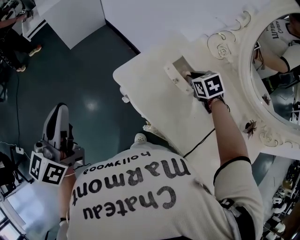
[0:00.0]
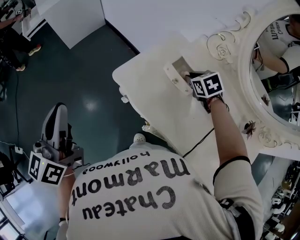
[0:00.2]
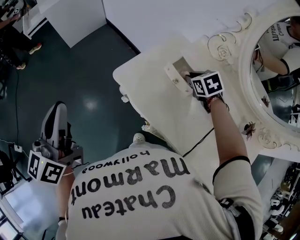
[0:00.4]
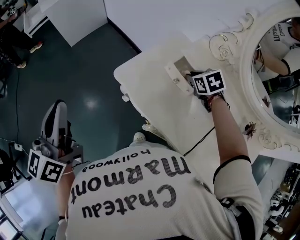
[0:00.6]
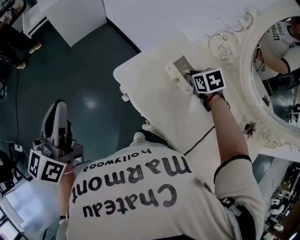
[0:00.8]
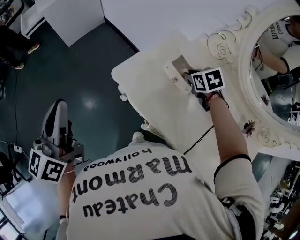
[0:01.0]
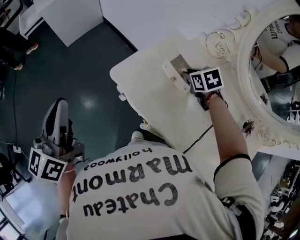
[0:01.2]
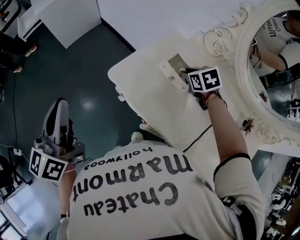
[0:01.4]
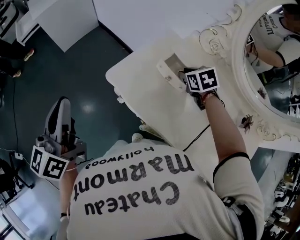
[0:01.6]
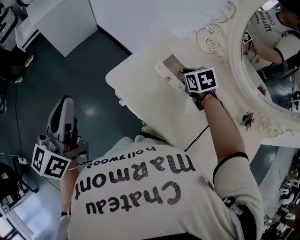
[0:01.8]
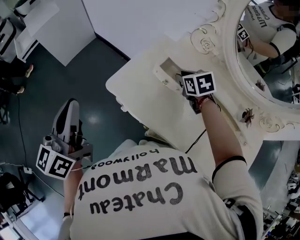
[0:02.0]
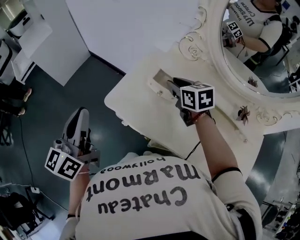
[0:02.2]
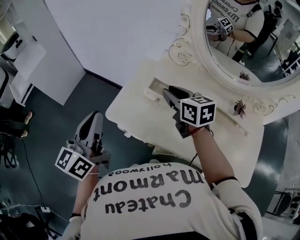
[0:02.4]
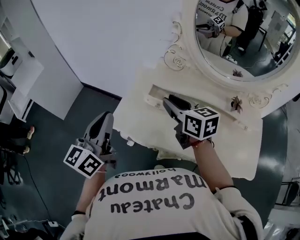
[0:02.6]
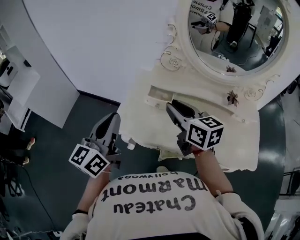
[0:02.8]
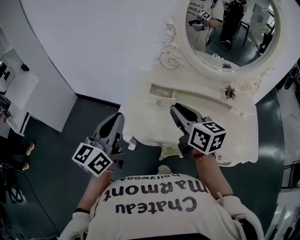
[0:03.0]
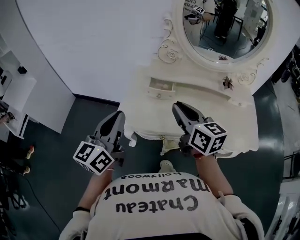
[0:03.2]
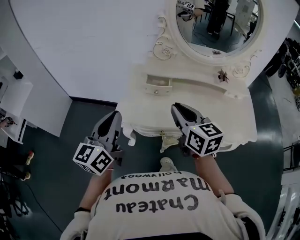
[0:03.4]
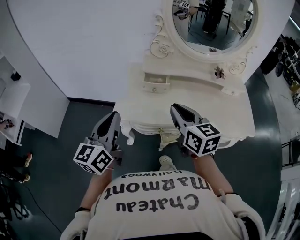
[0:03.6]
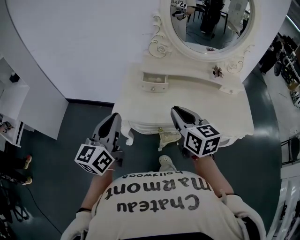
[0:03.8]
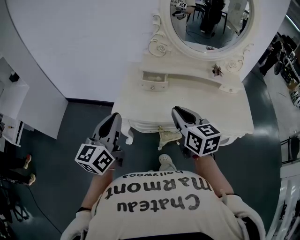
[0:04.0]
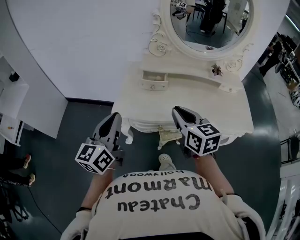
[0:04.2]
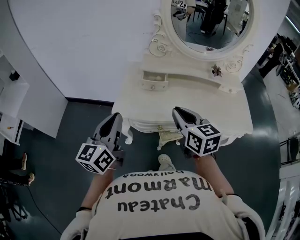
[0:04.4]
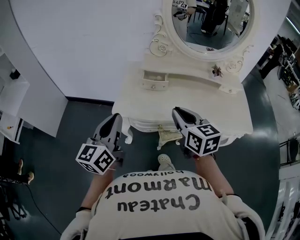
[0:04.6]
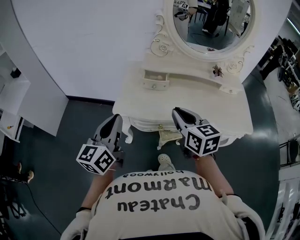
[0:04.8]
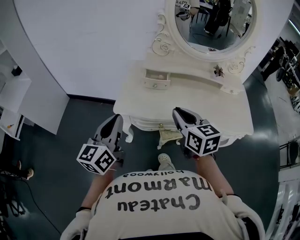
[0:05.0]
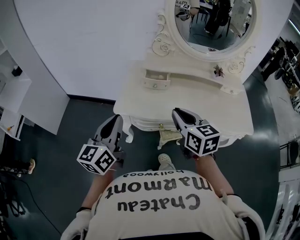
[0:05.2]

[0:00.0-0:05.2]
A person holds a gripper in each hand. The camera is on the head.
0:00.0 to 0:01.8: The grippers make only small movements.
0:01.8 to 0:03.4: The right gripper shifts by approximately 30 cm, and tips its fingers upward by roughly 40 degrees; the left gripper turns by approximately 40 degrees.
0:03.4 to 0:05.2: The right gripper moves backward, roughly 5 cm. The left gripper shifts by roughly 5 cm.

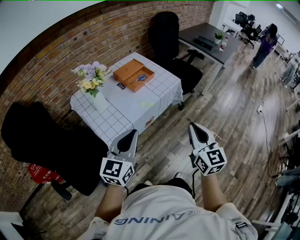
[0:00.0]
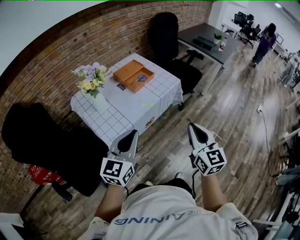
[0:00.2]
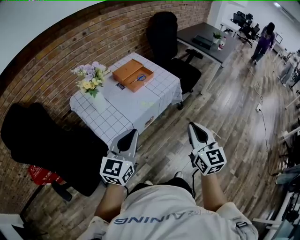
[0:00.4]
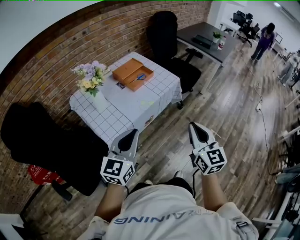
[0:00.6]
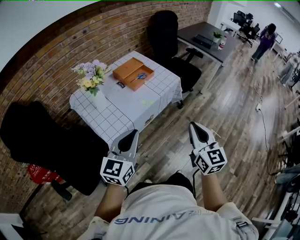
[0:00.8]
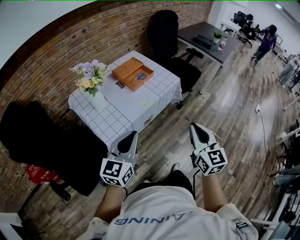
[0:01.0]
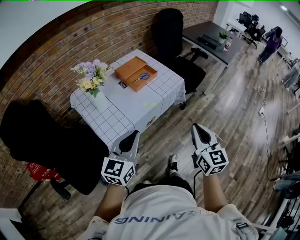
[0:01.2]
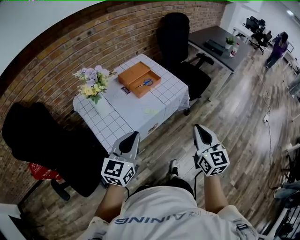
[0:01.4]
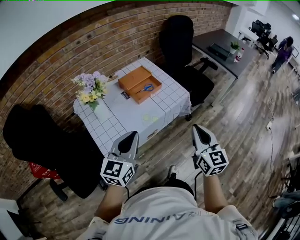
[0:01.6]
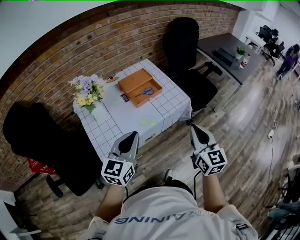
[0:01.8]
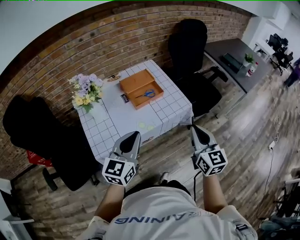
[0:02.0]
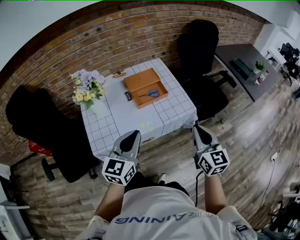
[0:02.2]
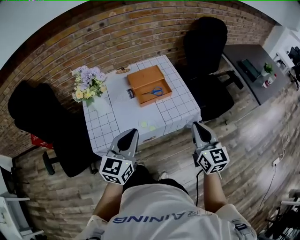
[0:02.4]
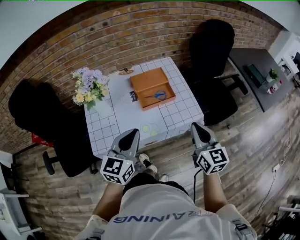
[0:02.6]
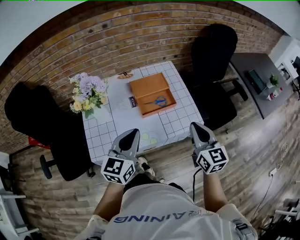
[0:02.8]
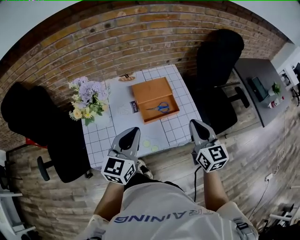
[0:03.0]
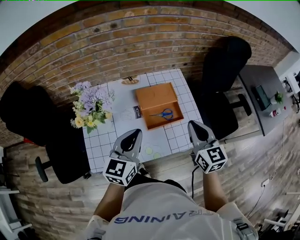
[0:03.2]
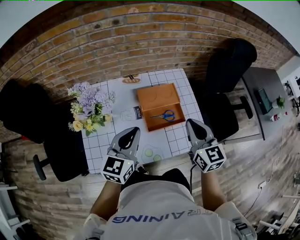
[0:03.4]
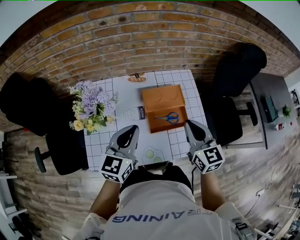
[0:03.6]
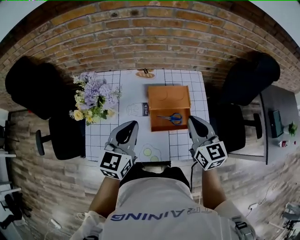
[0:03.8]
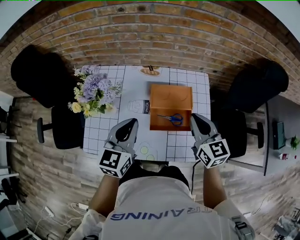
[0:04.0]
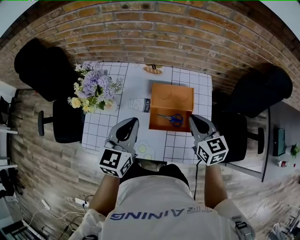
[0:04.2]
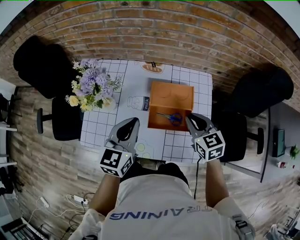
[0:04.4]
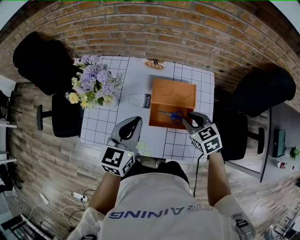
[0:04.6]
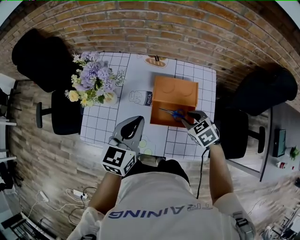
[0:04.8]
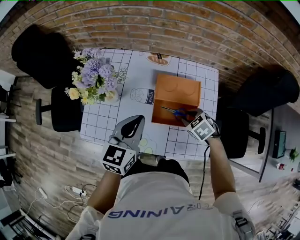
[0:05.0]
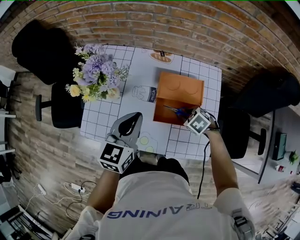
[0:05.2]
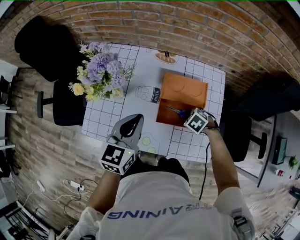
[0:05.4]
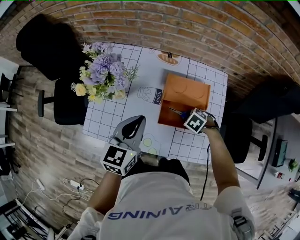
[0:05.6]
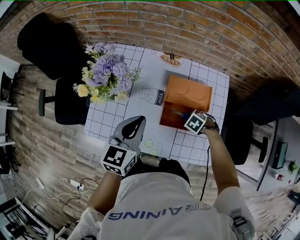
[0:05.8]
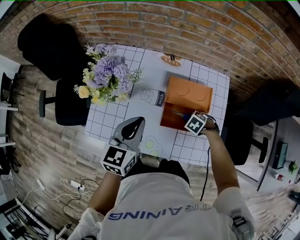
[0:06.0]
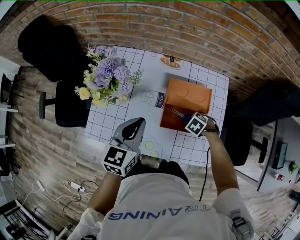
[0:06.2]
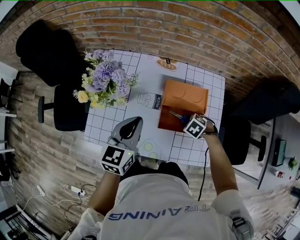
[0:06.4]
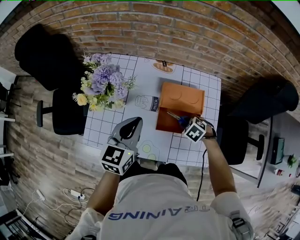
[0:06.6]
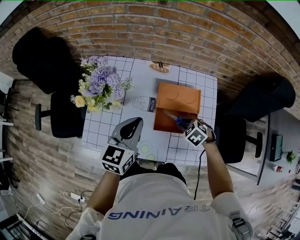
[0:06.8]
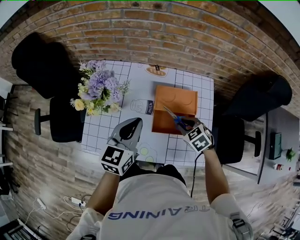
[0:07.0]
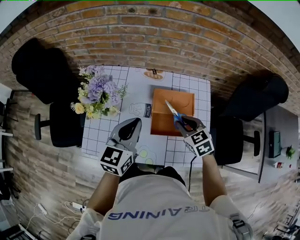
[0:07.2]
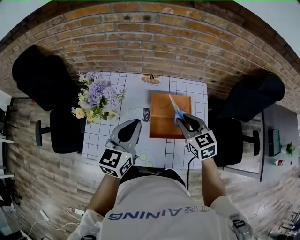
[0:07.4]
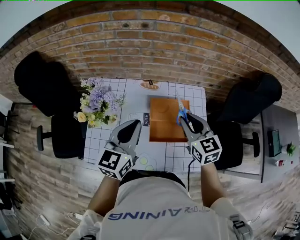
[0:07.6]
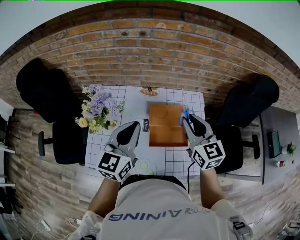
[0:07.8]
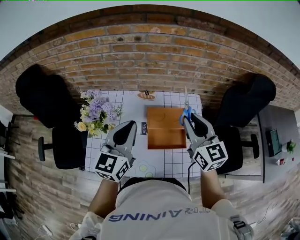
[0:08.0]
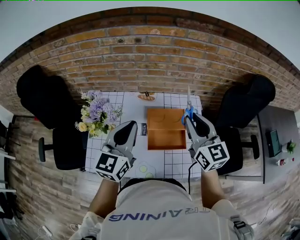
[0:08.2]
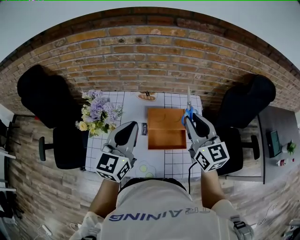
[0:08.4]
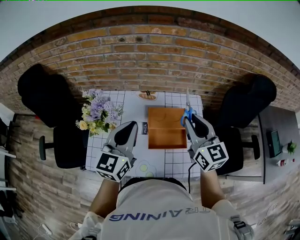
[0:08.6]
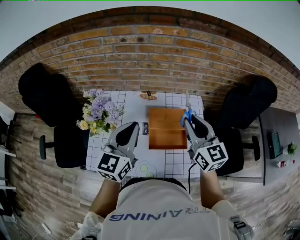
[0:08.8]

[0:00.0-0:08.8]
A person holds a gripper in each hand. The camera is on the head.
0:00.0 to 0:01.4: The grippers both shift forward by about 5 cm.
0:01.4 to 0:03.0: The right gripper ends up some 35 cm from where it was, and turns by roughly 30 degrees. The left gripper changes place by approximately 25 cm, and turns by some 20 degrees.
0:03.0 to 0:04.4: The right gripper changes place by roughly 20 cm, and rotates roughly 40 degrees. The left gripper changes place by some 10 cm, and turns by some 20 degrees.
0:04.4 to 0:05.8: The left gripper ends up some 5 cm from where it was; the right gripper moves downward, approximately 25 cm, and tilts its fingers about 50 degrees downward.
0:05.8 to 0:07.4: The left gripper is displaced upward by some 5 cm. Meanwhile the right gripper is displaced upward by about 25 cm, and points its fingers some 50 degrees further upward.
0:07.4 to 0:08.8: The right gripper heads upward, covering roughly 15 cm, and swivels about 30 degrees. The left gripper heads upward, covering some 5 cm.

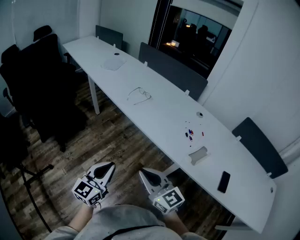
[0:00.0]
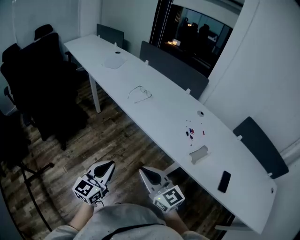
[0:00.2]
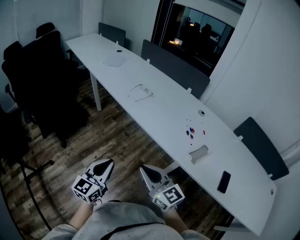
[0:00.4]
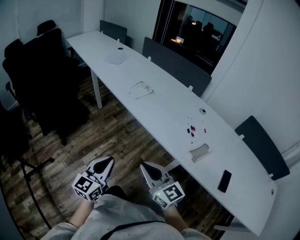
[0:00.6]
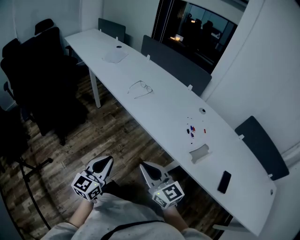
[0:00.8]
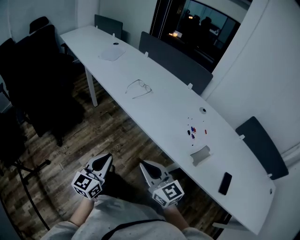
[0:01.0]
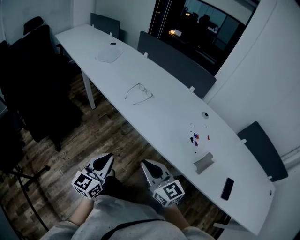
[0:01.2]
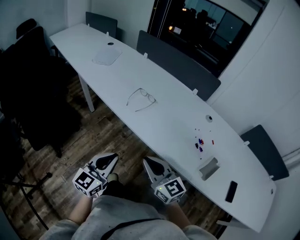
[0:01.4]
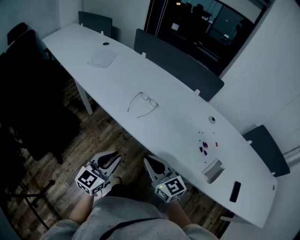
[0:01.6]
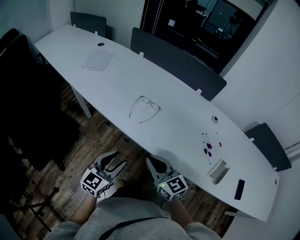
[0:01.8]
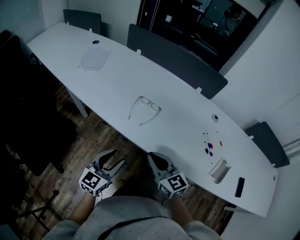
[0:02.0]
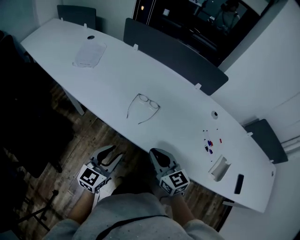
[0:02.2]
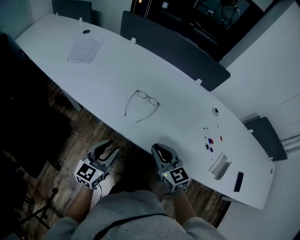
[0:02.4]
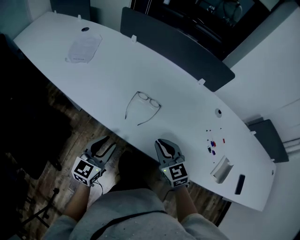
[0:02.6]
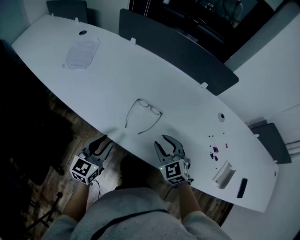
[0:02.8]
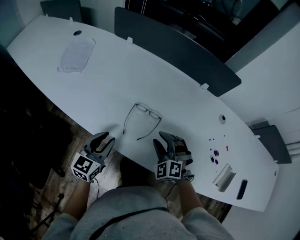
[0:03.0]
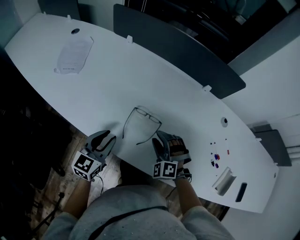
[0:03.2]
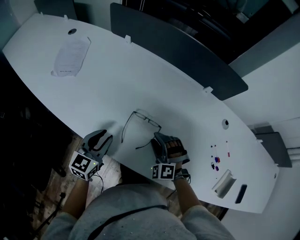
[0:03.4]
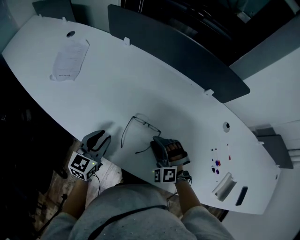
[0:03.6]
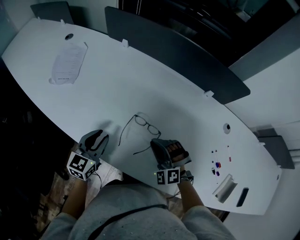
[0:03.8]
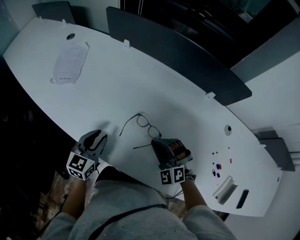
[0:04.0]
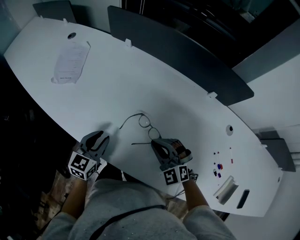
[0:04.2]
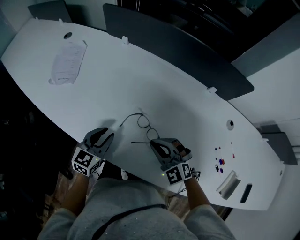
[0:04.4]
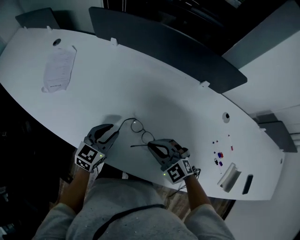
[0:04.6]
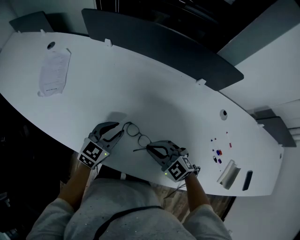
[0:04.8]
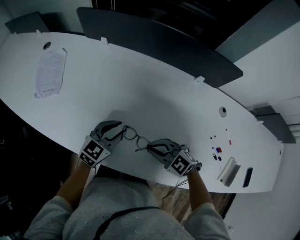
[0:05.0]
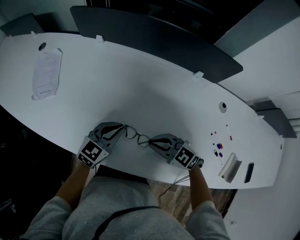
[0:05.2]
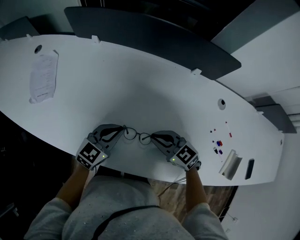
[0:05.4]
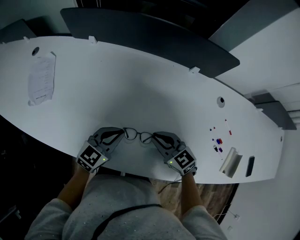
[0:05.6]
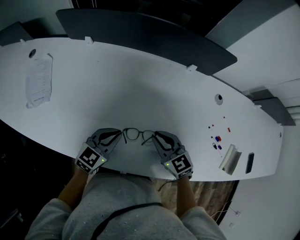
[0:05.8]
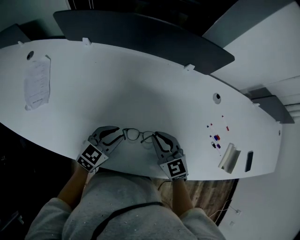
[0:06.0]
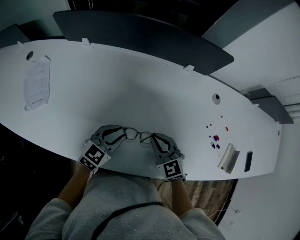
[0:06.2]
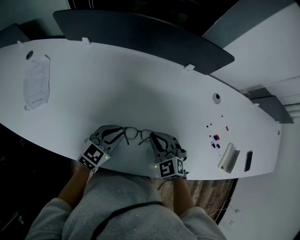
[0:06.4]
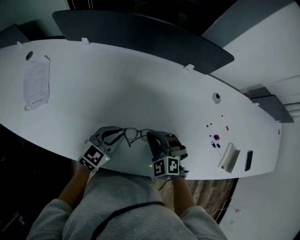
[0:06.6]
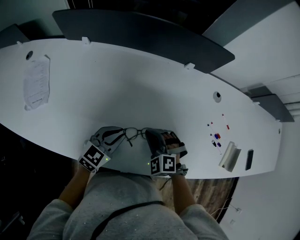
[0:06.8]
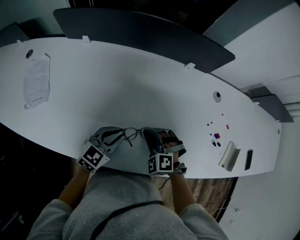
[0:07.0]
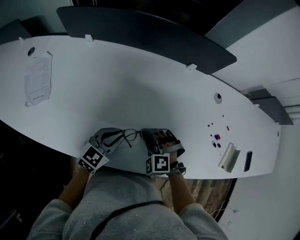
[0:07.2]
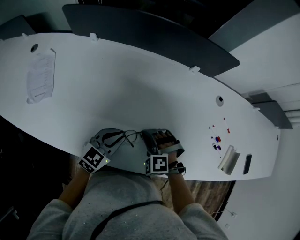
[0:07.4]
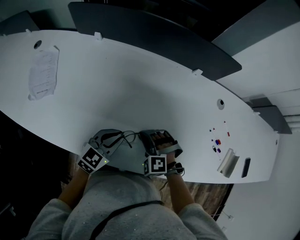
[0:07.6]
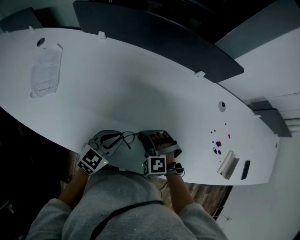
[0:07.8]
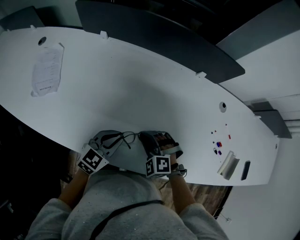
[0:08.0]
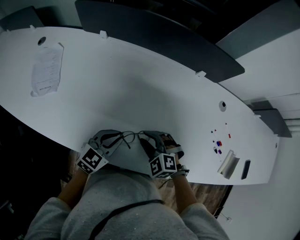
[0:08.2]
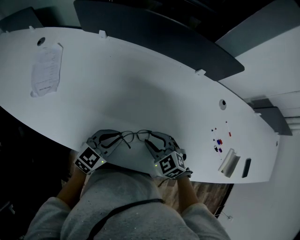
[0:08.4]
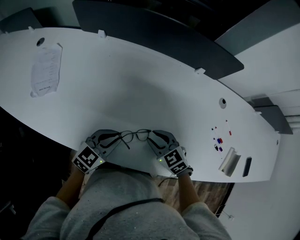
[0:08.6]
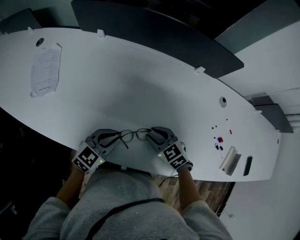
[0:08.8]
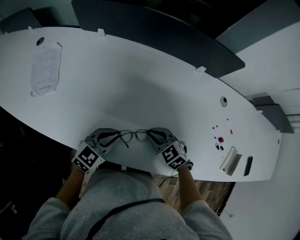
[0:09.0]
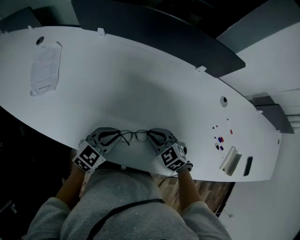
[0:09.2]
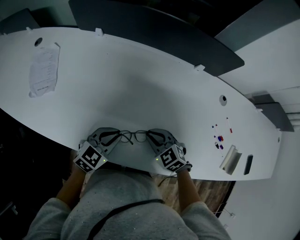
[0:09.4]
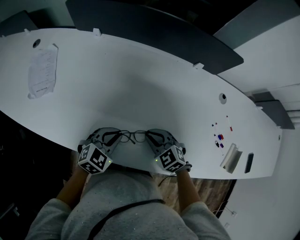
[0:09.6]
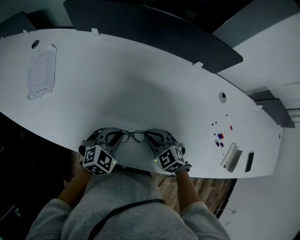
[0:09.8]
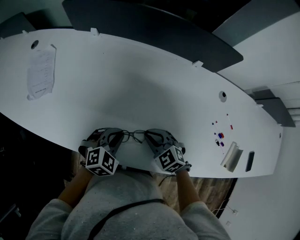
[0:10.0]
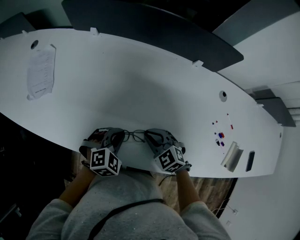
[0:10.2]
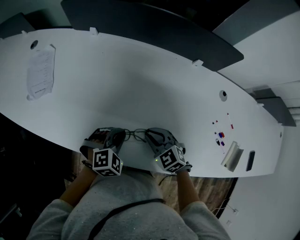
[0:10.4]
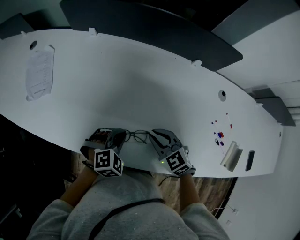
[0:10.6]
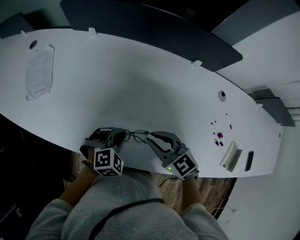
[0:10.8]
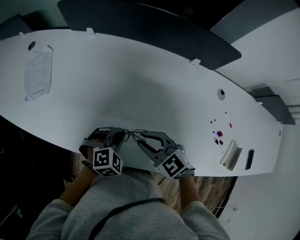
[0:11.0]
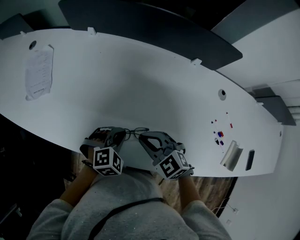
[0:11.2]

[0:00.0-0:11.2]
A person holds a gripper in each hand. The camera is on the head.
0:00.0 to 0:01.6: The two grippers go approximately 30 cm forward.
0:01.6 to 0:03.2: The right gripper heads forward and downward, covering about 35 cm, points its fingers some 30 degrees further downward, and opens. The left gripper goes approximately 35 cm forward.
0:03.2 to 0:04.8: The left gripper heads forward and to the right, covering some 15 cm, and swivels roughly 30 degrees. Meanwhile the right gripper changes its angle by approximately 50 degrees, and closes its fingers.
0:04.8 to 0:06.4: The right gripper ends up roughly 5 cm from where it was, and turns by about 30 degrees.
0:06.4 to 0:08.0: The left gripper ends up approximately 5 cm from where it was, while the right gripper goes about 10 cm to the left, and turns by approximately 30 degrees.
0:08.0 to 0:09.6: The right gripper swivels about 30 degrees.
0:09.6 to 0:11.2: The right gripper is displaced upward by some 5 cm, while the left gripper turns by roughly 20 degrees.
